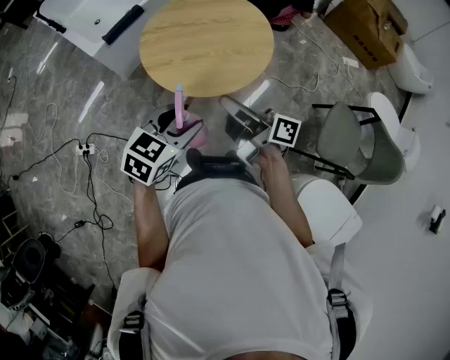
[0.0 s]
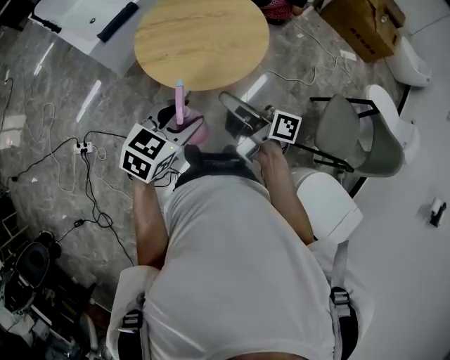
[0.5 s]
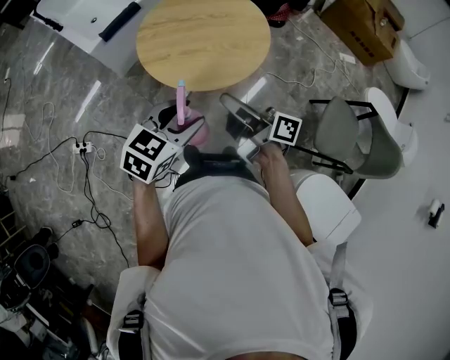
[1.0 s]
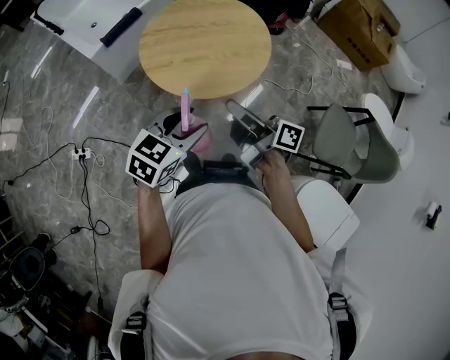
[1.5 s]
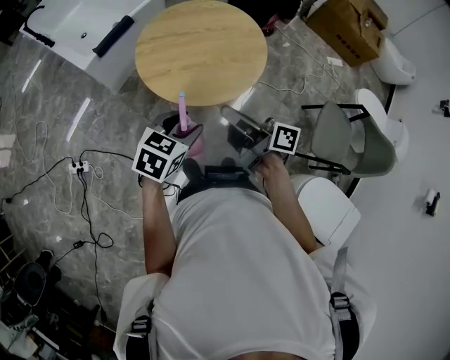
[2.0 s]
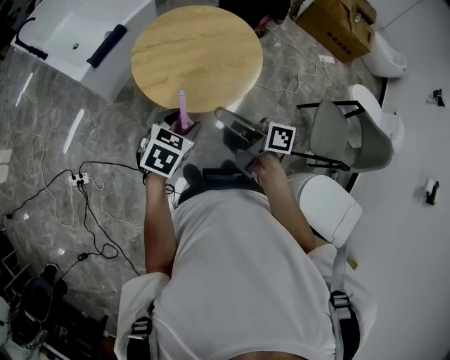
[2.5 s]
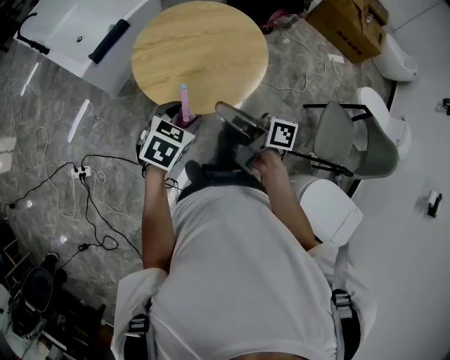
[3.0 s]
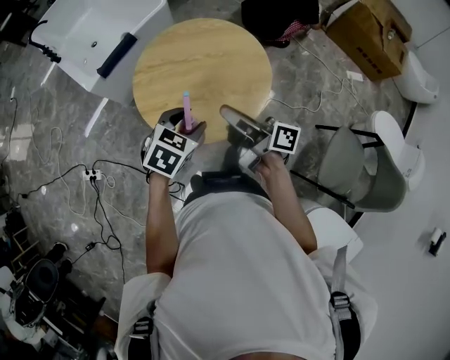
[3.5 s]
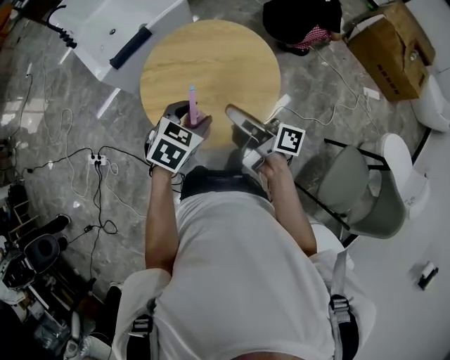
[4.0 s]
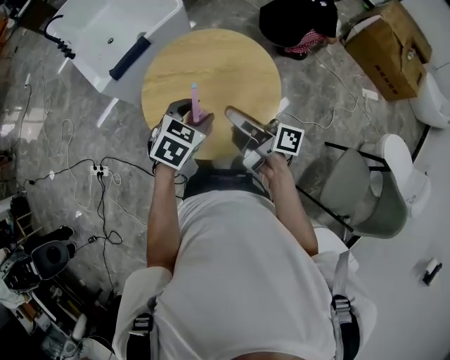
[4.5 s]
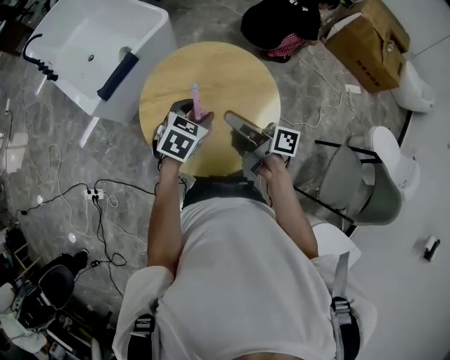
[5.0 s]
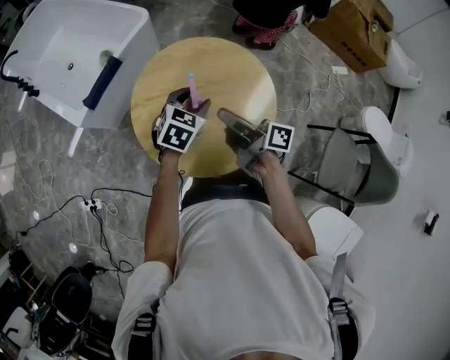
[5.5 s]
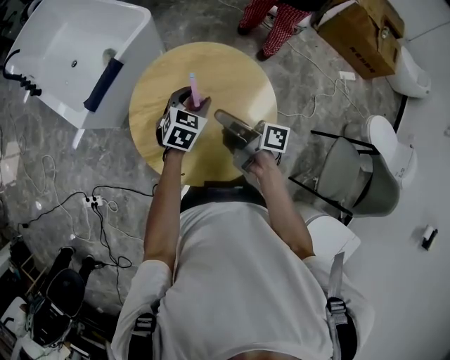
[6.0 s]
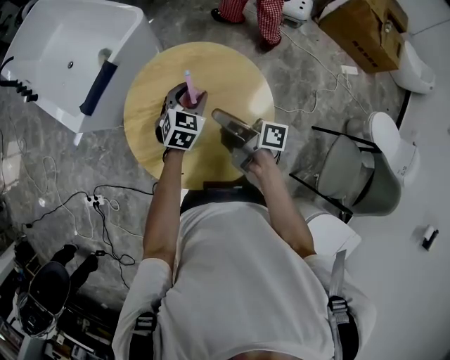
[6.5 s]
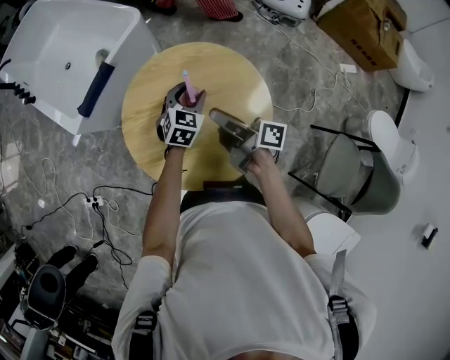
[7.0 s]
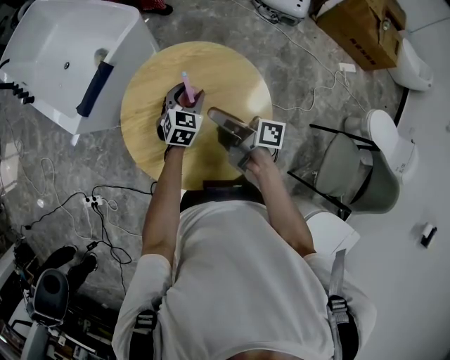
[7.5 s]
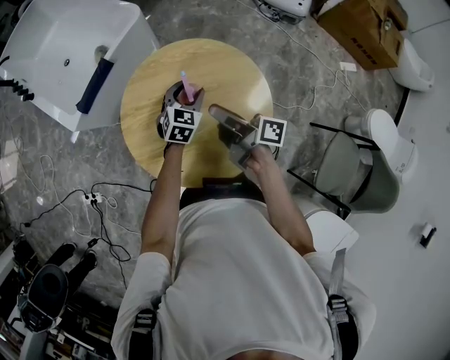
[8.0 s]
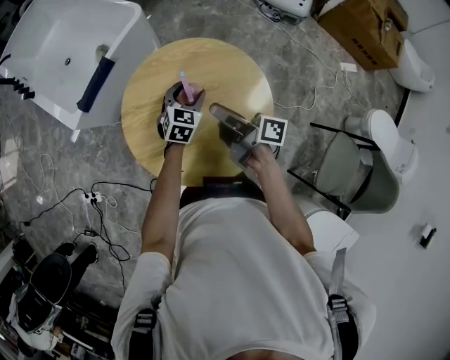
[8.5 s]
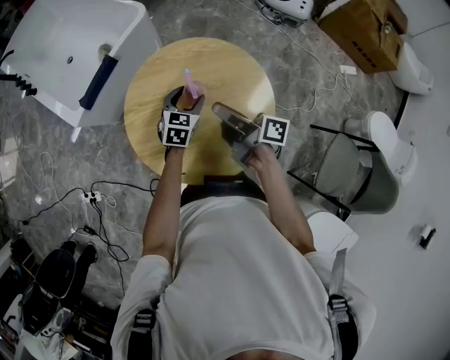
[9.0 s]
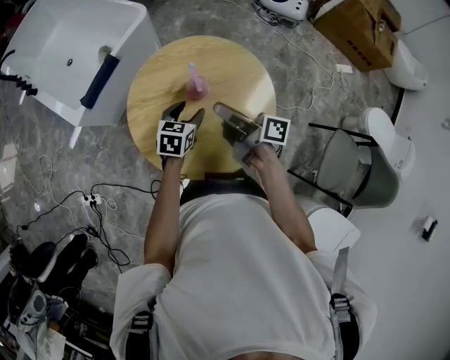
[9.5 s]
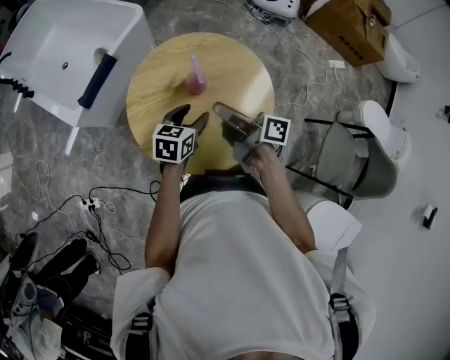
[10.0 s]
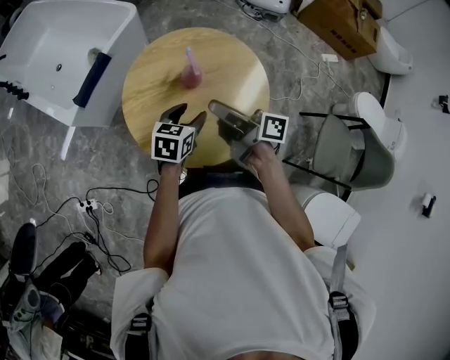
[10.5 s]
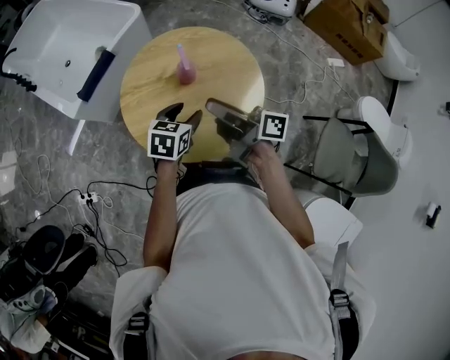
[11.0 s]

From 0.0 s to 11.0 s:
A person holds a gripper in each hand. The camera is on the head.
From 0.0 s to 2.0 s: The left gripper ends up some 5 cm from where it was.
From 2.0 s to 3.5 s: The two grippers go some 15 cm forward and to the right.
From 3.5 s to 5.5 s: Both grippers move forward, some 15 cm.
From 5.5 s to 7.5 s: The right gripper heads forward, covering about 5 cm; the left gripper is displaced forward and downward by about 10 cm.
From 7.5 s to 9.0 s: The grippers make only small movements.
From 9.0 s to 11.0 s: The two grippers go about 15 cm backward and upward.

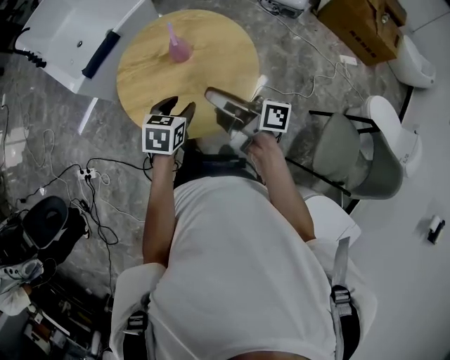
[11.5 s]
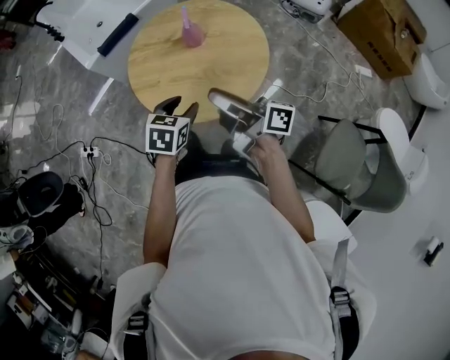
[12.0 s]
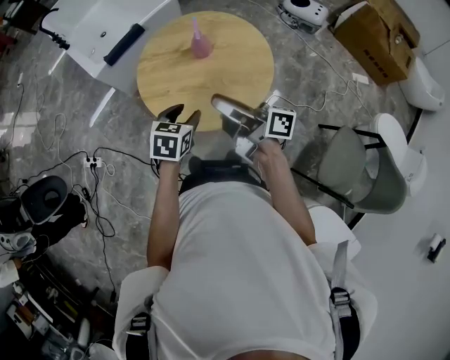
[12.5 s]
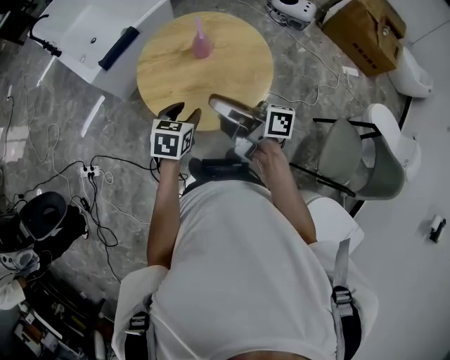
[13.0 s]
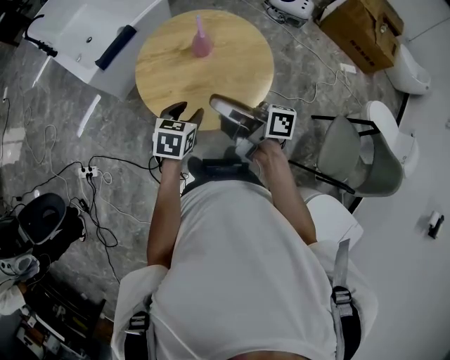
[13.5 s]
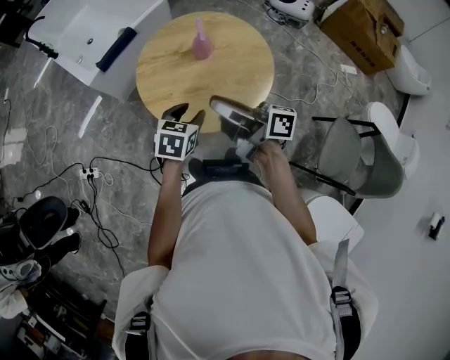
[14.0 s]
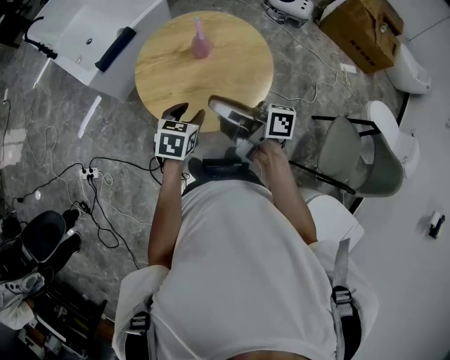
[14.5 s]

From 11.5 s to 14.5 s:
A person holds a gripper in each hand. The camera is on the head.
From 11.5 s to 13.0 s: Both grippers move to the left, approximately 10 cm.
From 13.0 s to 14.5 s: The grippers stay close to where they were, moving slightly.

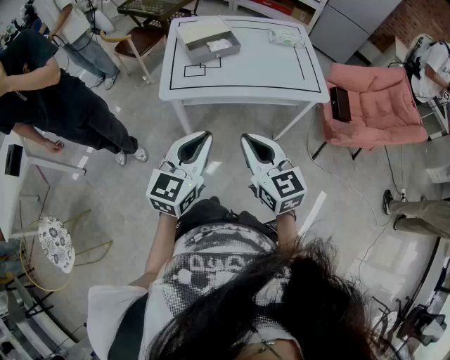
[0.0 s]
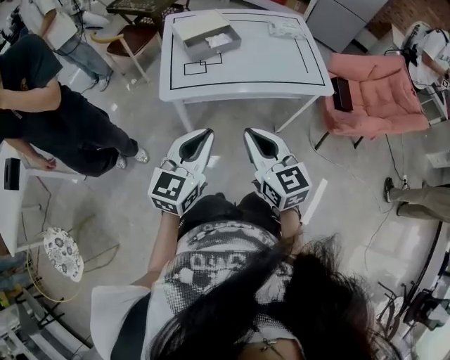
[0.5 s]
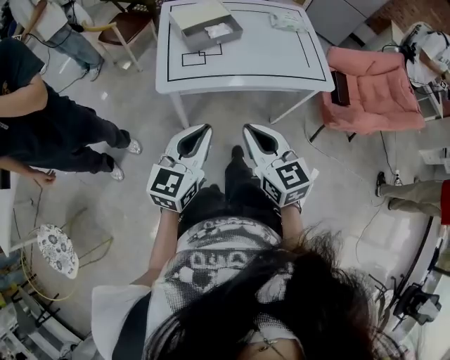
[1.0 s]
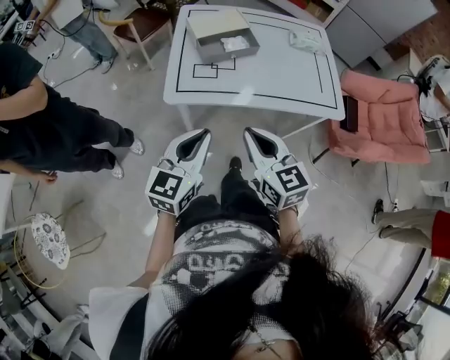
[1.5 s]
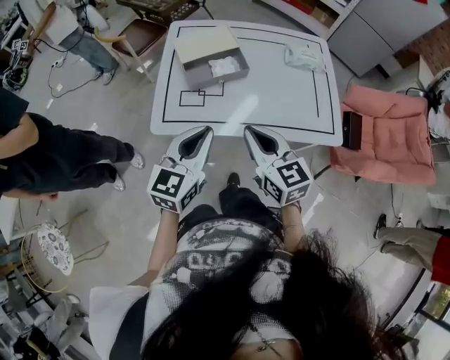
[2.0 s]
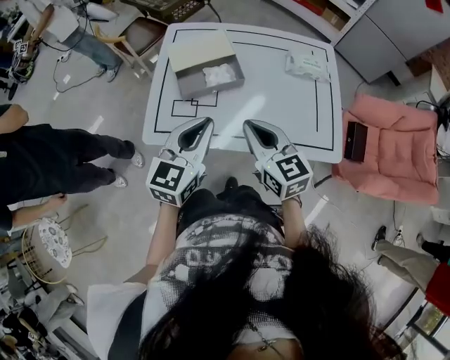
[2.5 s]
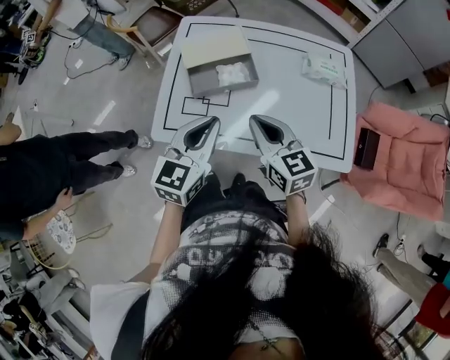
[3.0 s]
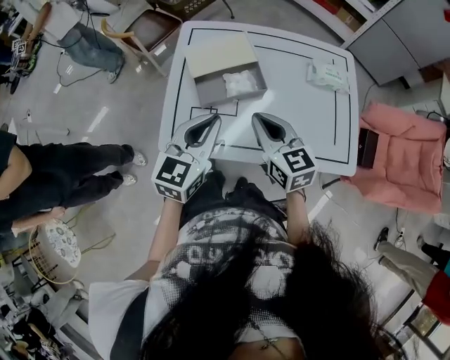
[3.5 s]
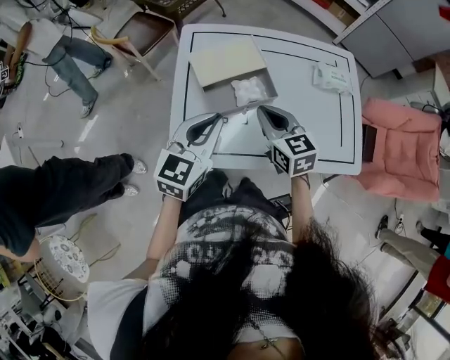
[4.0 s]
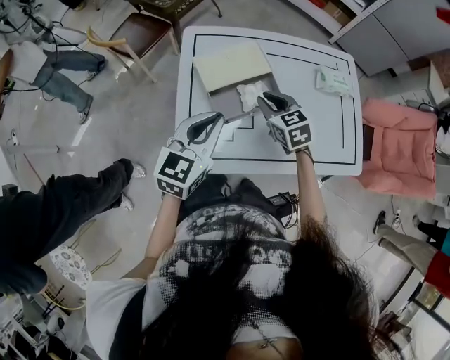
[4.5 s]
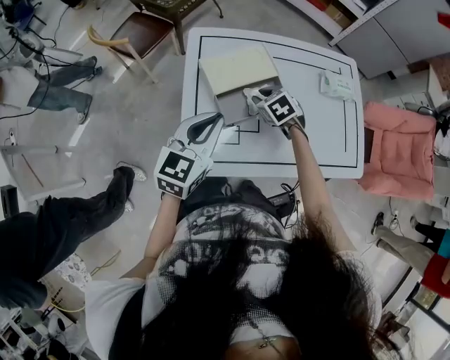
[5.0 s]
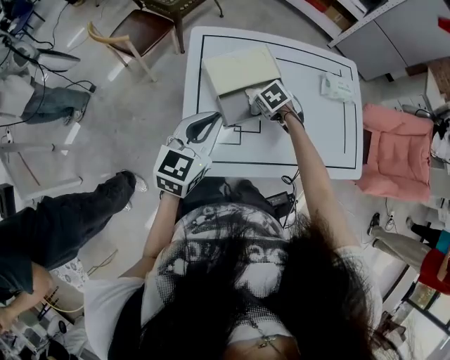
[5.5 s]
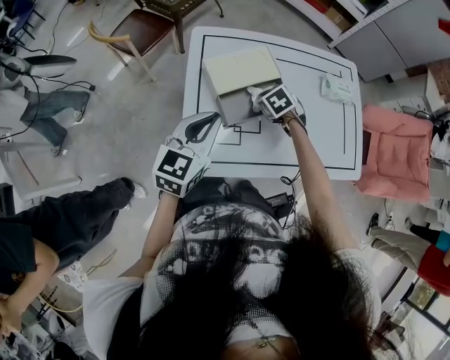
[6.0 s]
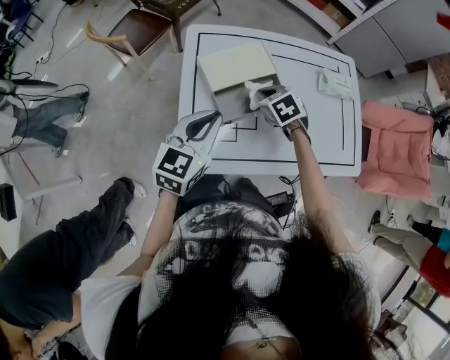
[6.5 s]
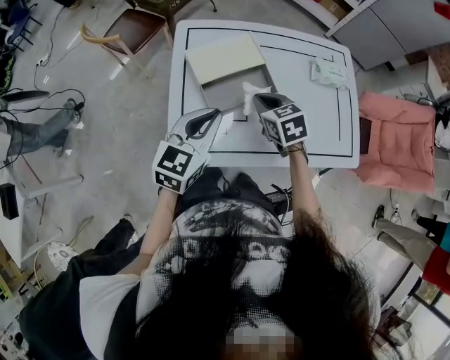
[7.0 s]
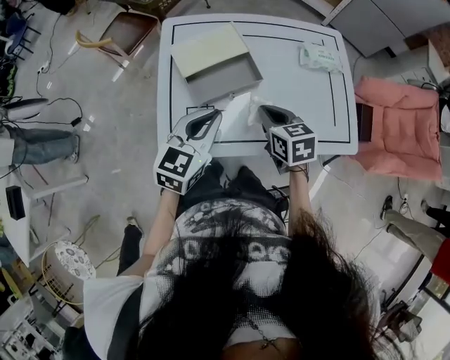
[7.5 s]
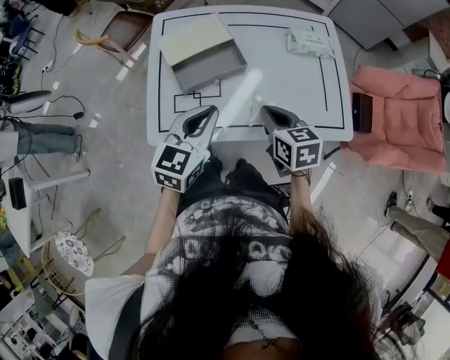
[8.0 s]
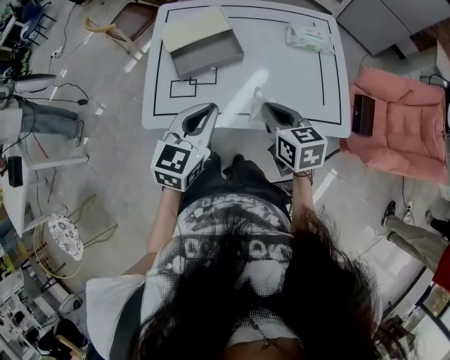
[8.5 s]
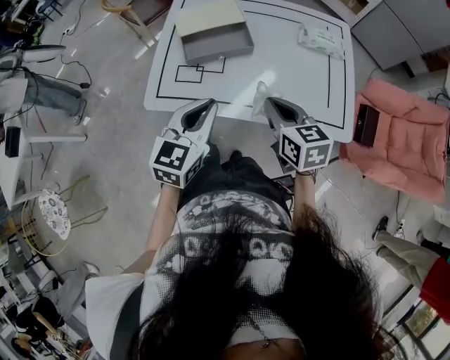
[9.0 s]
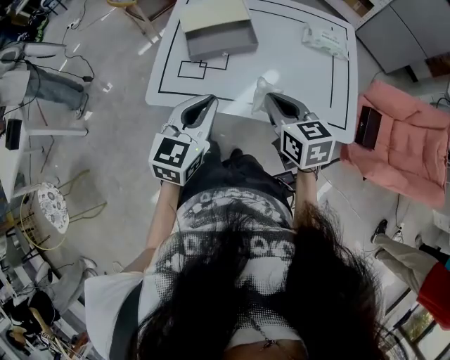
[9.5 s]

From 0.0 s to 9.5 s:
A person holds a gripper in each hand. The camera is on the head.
From 0.0 s to 2.0 s: The grippers both shift forward by some 25 cm.
From 2.0 s to 4.0 s: The grippers both shift forward by approximately 20 cm.
From 4.0 s to 5.5 s: The left gripper travels to the left by approximately 5 cm. The right gripper heads downward and forward, covering approximately 20 cm, tilts its fingers some 50 degrees downward, and opens.
From 5.5 s to 7.5 s: The right gripper is displaced backward, upward and to the right by approximately 20 cm, tilts its fingers about 30 degrees upward, and closes; the left gripper heads to the right and backward, covering about 15 cm.
From 7.5 s to 9.5 s: The two grippers go approximately 15 cm backward and to the right.

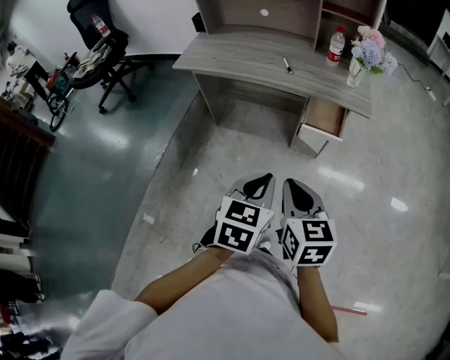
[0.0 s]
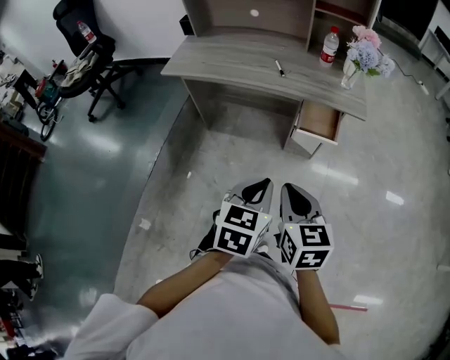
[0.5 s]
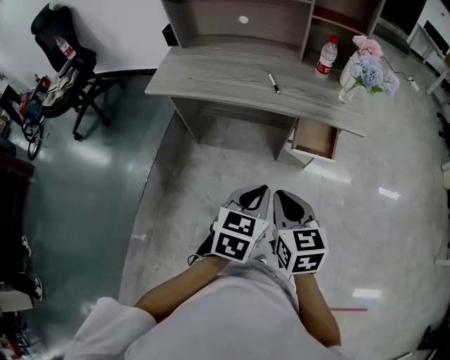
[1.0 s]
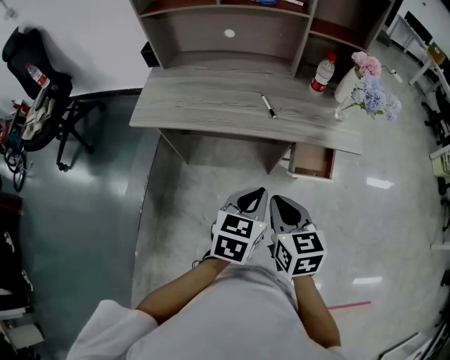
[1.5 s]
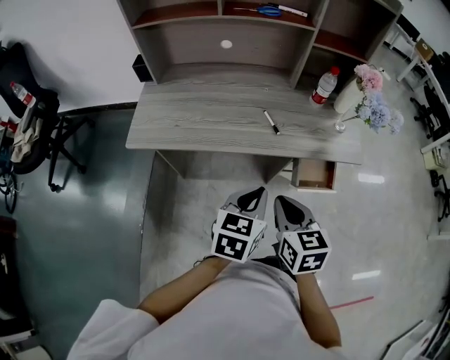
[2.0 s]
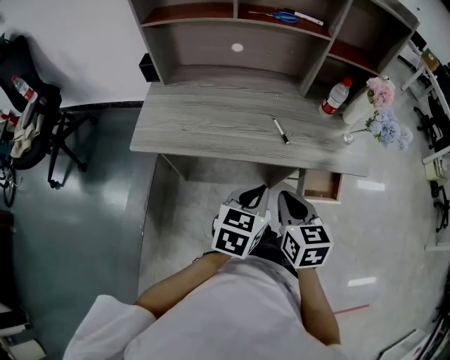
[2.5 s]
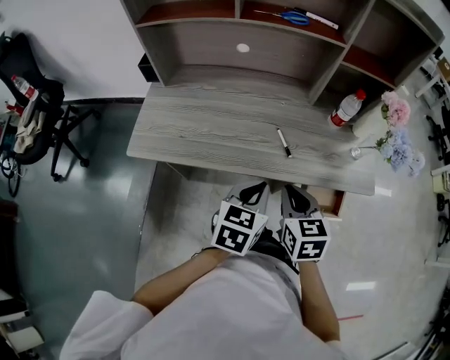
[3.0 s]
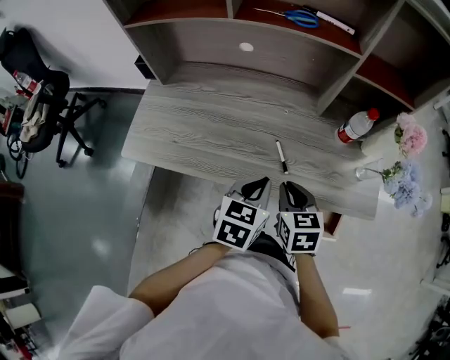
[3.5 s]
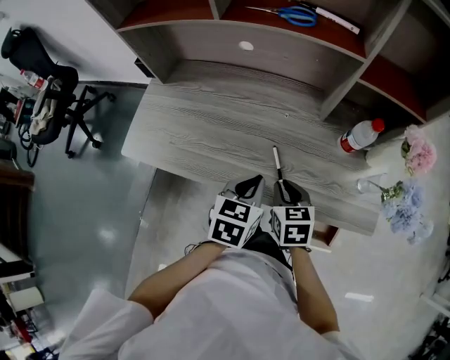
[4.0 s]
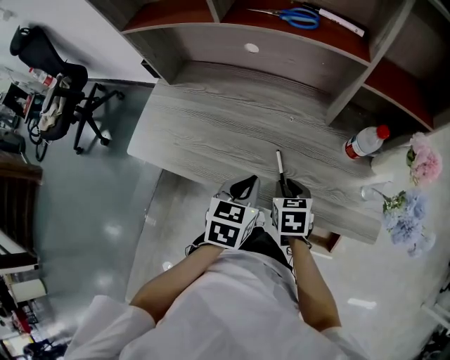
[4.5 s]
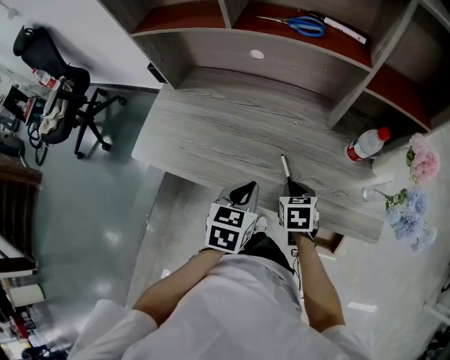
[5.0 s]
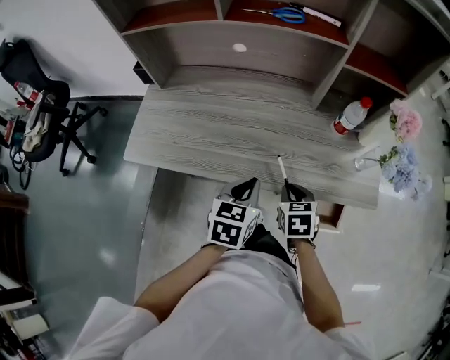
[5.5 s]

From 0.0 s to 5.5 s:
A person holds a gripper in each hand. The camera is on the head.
From 0.0 s to 2.0 s: Both grippers travel together forward and to the left, some 30 cm.
From 2.0 s to 3.5 s: The two grippers go approximately 20 cm forward.
From 3.5 s to 5.5 s: The right gripper travels downward by approximately 5 cm.
